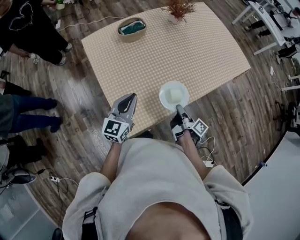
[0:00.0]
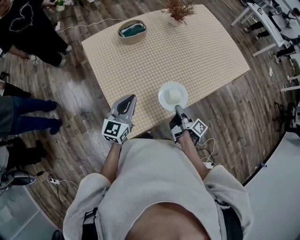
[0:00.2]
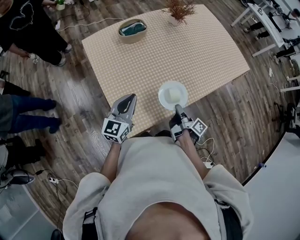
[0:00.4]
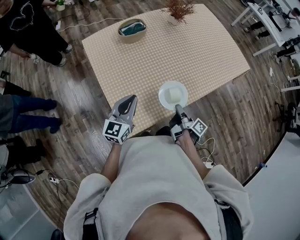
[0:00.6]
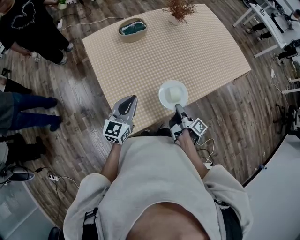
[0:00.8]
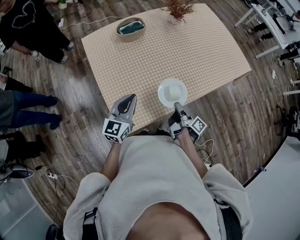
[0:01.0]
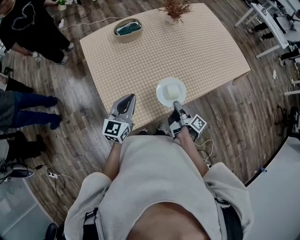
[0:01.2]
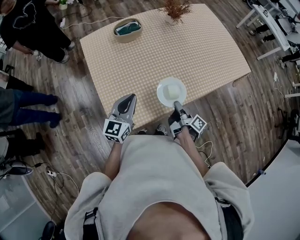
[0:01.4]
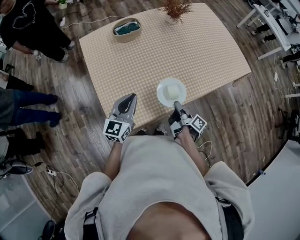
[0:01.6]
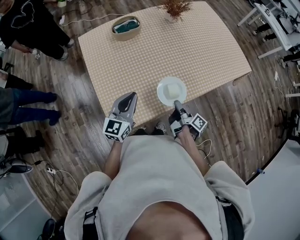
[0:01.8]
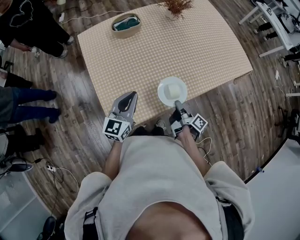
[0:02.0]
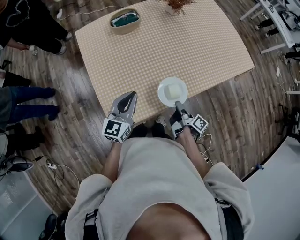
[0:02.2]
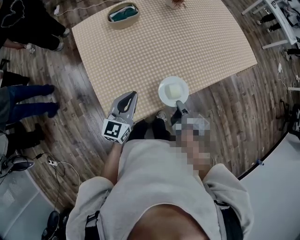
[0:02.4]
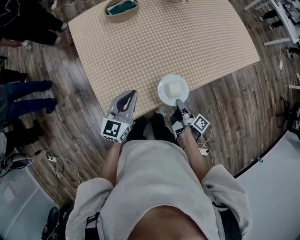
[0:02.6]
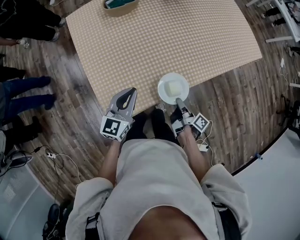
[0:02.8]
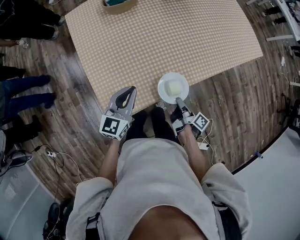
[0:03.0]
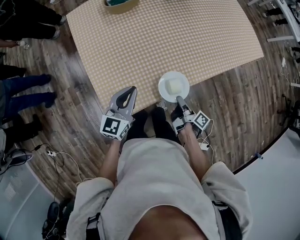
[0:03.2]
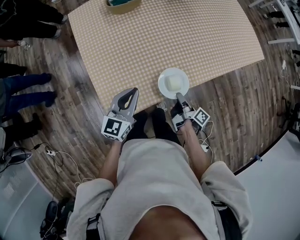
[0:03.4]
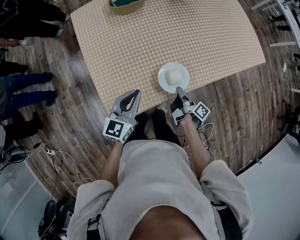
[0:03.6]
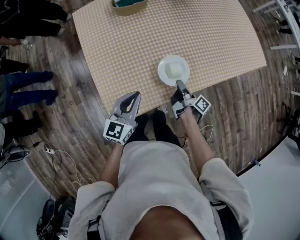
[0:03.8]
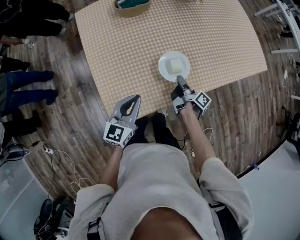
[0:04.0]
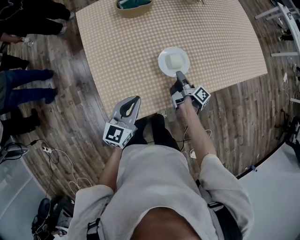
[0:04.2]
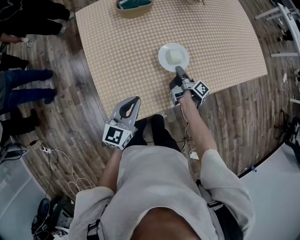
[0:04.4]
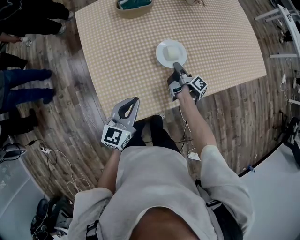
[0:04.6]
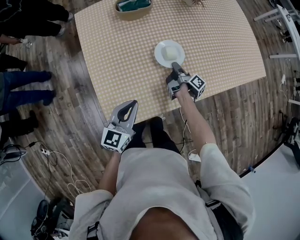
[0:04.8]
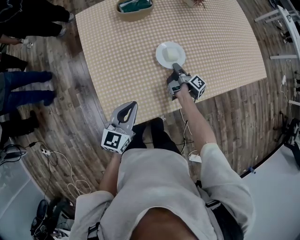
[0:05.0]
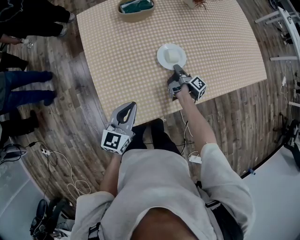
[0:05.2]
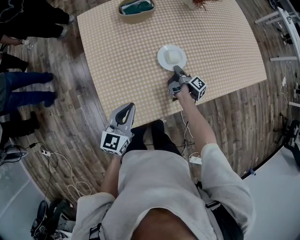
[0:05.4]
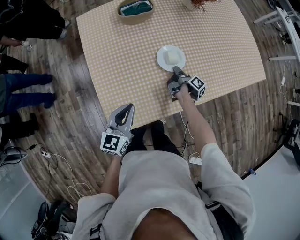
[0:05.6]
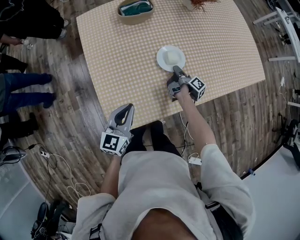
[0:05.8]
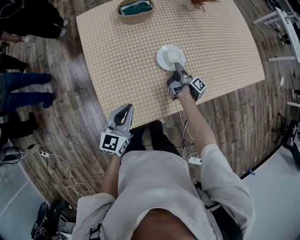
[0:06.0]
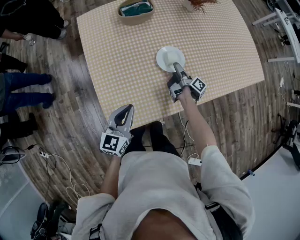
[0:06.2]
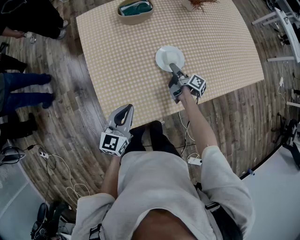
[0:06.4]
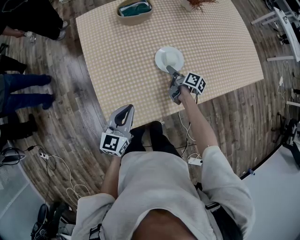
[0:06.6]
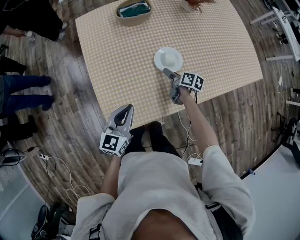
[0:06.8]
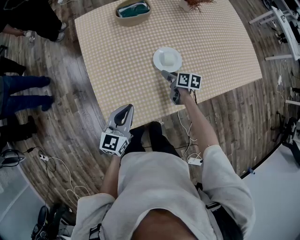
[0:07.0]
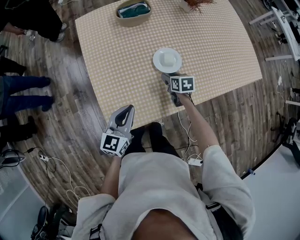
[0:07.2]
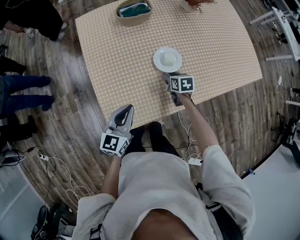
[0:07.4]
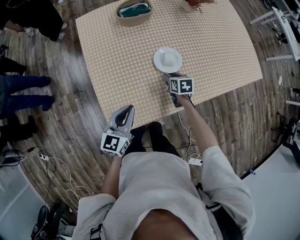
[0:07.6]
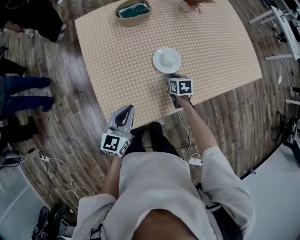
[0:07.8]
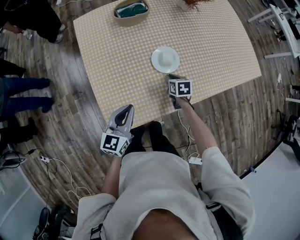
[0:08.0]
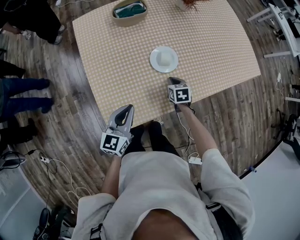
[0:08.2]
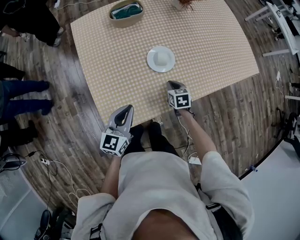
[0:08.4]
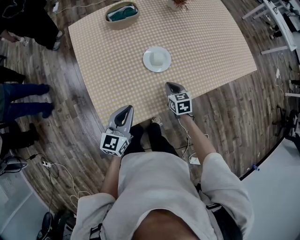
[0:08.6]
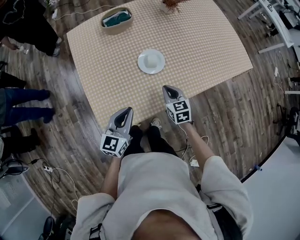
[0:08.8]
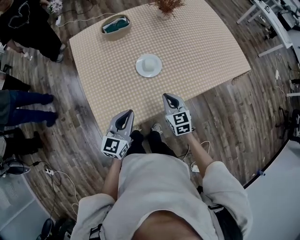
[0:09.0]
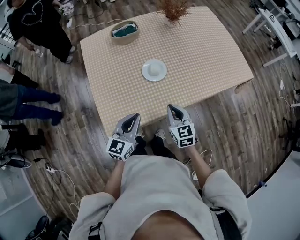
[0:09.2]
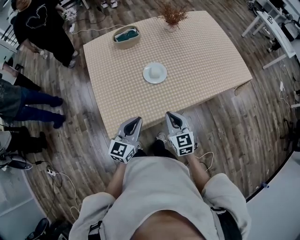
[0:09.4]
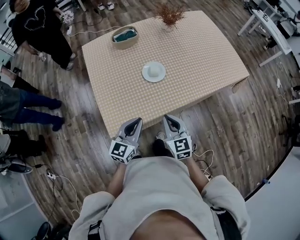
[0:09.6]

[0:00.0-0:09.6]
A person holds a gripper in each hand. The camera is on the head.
0:00.0 to 0:01.6: The left gripper changes place by roughly 5 cm.
0:01.6 to 0:03.2: The left gripper moves downward, about 5 cm.
0:08.0 to 0:09.6: The left gripper shifts by about 15 cm.

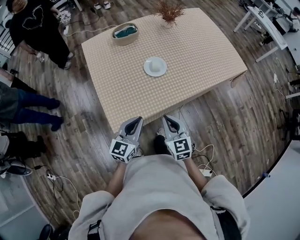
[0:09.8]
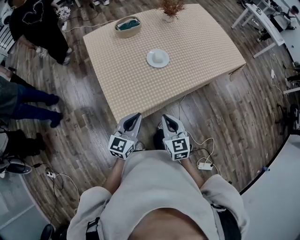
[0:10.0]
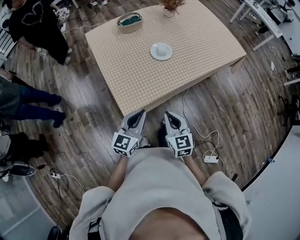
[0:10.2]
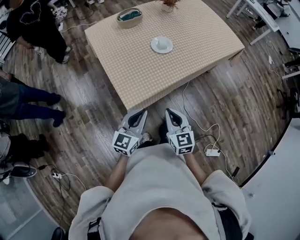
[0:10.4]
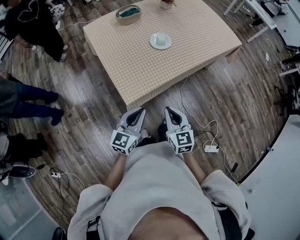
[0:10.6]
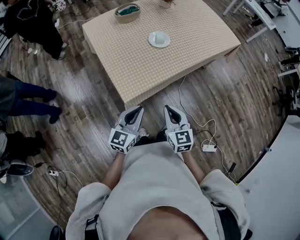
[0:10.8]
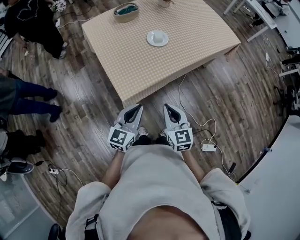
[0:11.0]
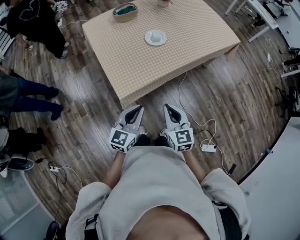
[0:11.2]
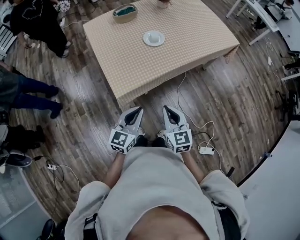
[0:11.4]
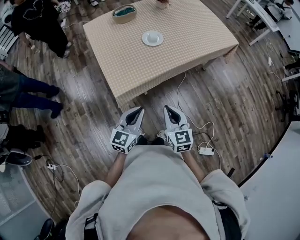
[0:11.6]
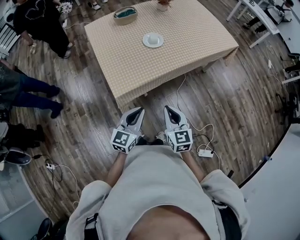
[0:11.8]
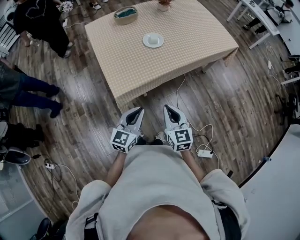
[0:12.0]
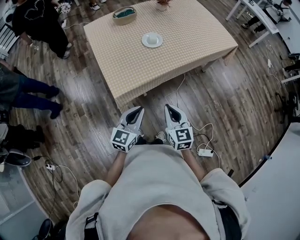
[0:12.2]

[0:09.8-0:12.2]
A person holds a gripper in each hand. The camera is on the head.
0:09.8 to 0:11.0: The left gripper changes place by about 15 cm.
0:11.0 to 0:12.2: The left gripper moves about 10 cm.

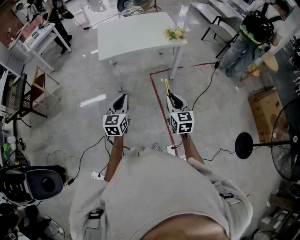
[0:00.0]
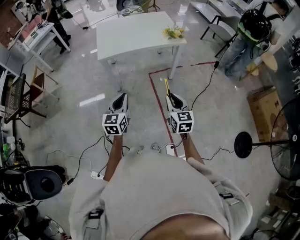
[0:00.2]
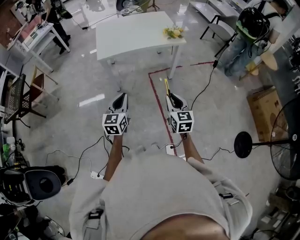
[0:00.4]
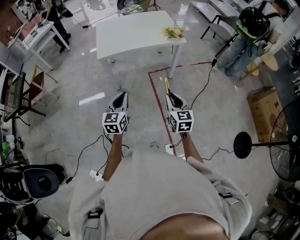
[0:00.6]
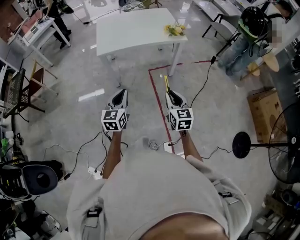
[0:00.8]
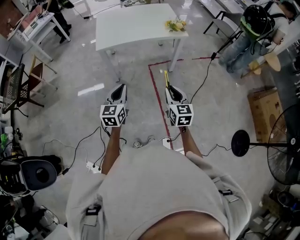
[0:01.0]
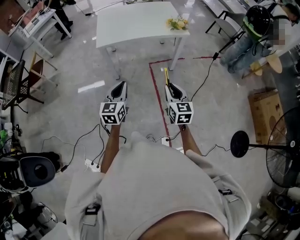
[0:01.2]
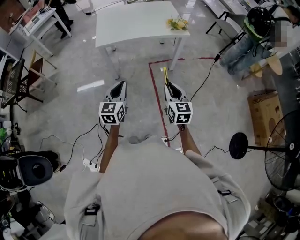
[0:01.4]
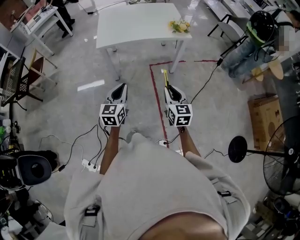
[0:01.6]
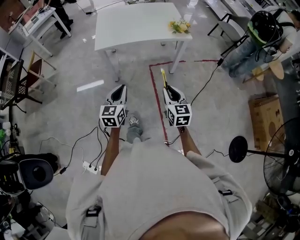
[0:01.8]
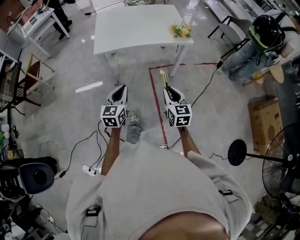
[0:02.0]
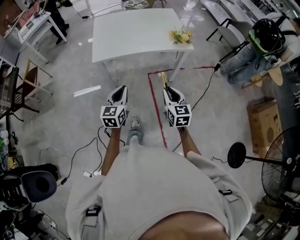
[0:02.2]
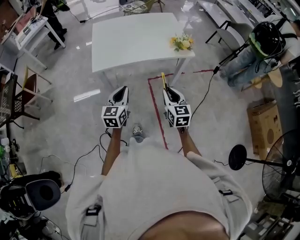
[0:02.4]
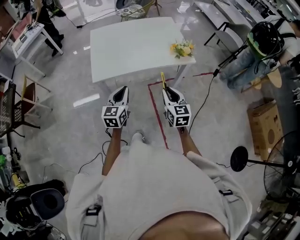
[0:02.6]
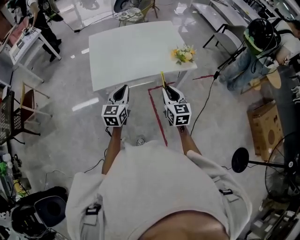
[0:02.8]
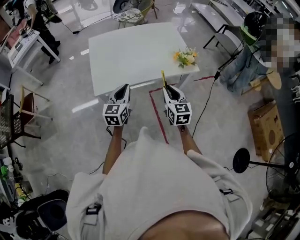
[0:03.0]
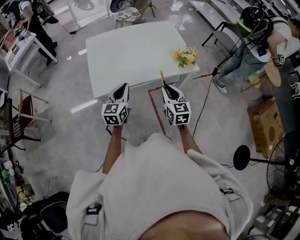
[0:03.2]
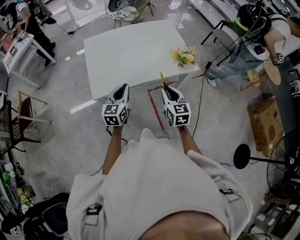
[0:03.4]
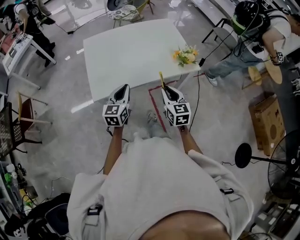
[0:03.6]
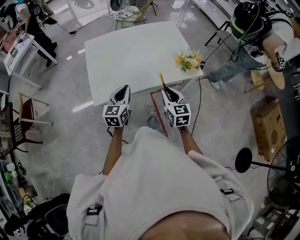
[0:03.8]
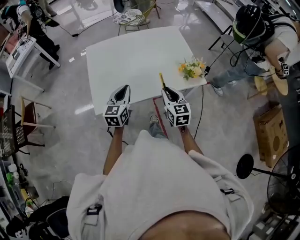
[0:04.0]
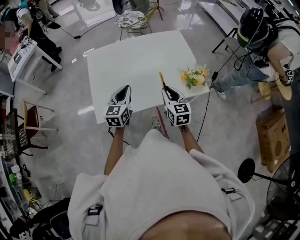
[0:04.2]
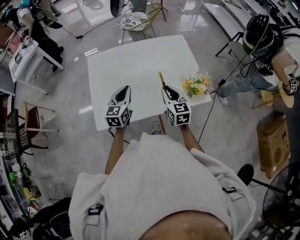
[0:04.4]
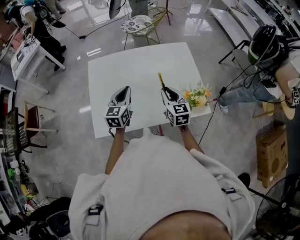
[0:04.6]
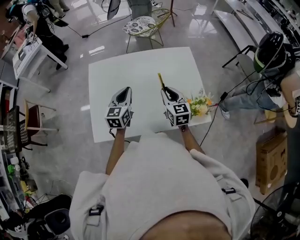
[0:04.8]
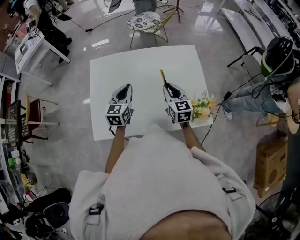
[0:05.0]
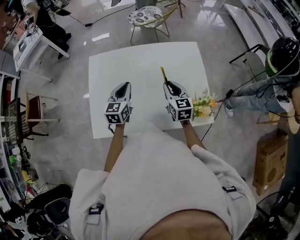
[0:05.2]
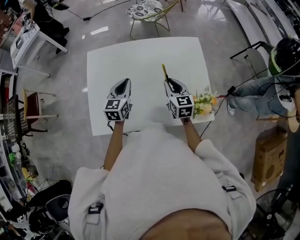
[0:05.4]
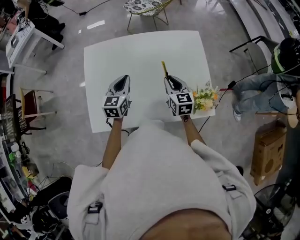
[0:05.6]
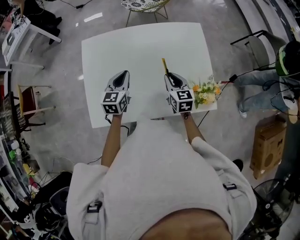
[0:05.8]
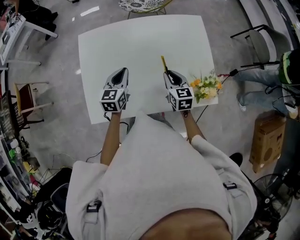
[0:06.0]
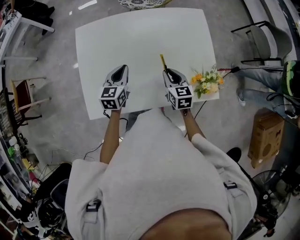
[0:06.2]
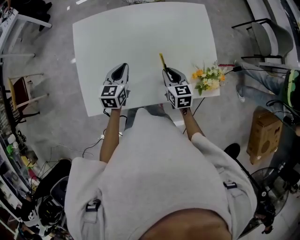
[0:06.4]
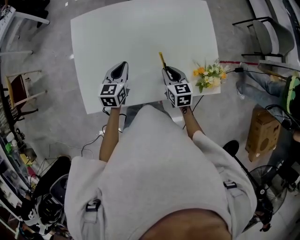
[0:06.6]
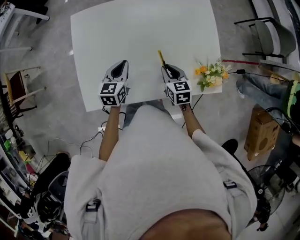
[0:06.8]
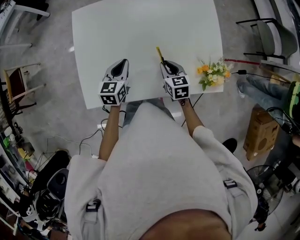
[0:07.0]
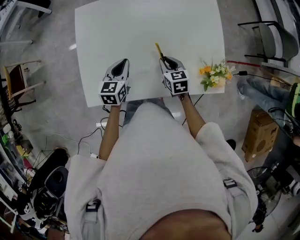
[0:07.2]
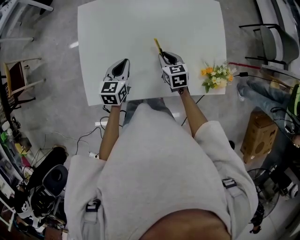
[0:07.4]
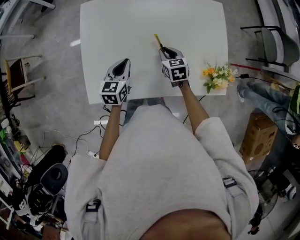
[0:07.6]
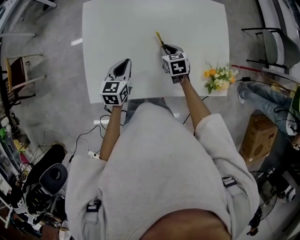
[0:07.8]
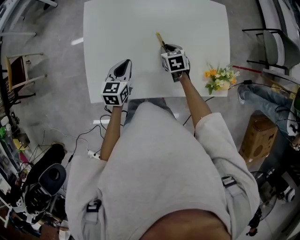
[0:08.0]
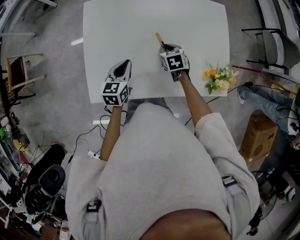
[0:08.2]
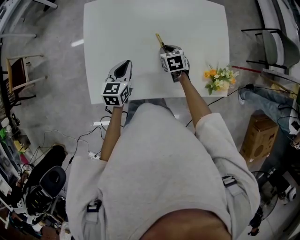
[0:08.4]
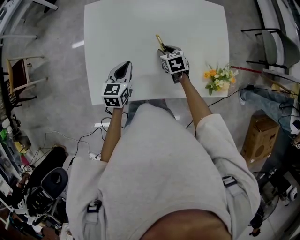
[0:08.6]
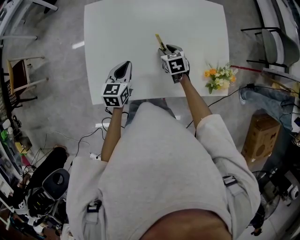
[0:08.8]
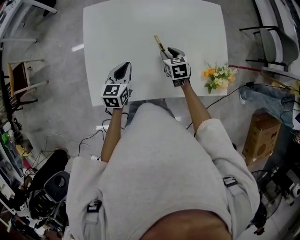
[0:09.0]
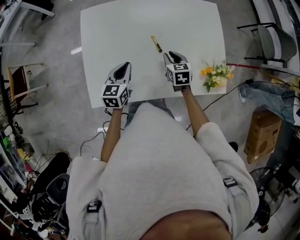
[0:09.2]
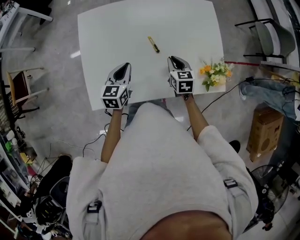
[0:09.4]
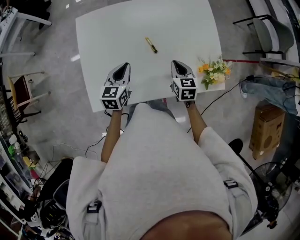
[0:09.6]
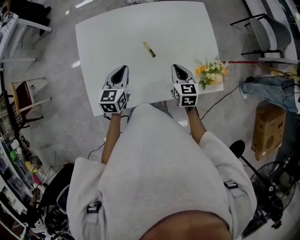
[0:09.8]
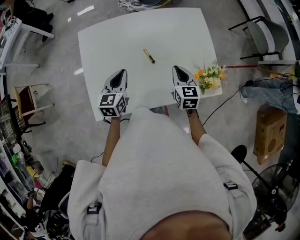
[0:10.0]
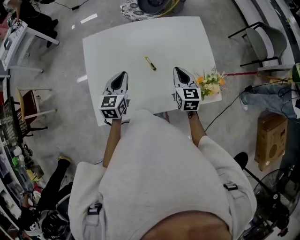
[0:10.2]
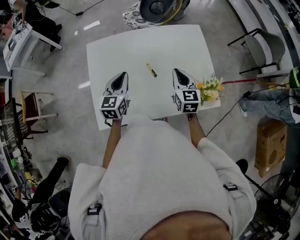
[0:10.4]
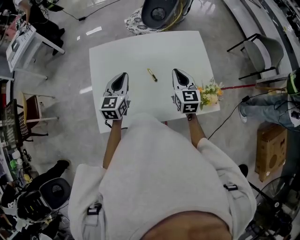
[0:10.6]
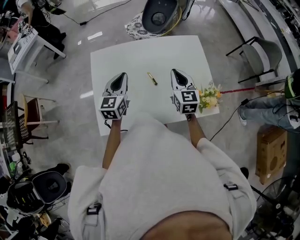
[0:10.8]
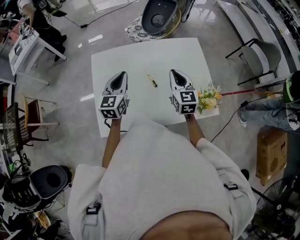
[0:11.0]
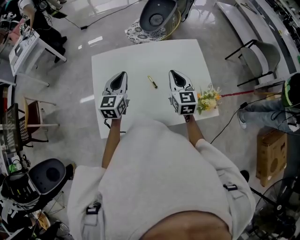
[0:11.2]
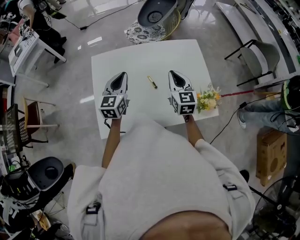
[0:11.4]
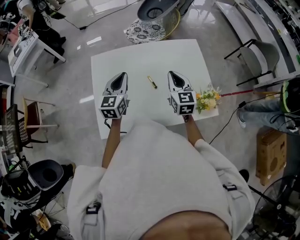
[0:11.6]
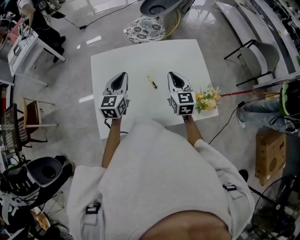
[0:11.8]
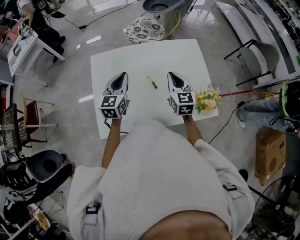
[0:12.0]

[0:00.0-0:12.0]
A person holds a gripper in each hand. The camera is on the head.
0:00.0 to 0:01.6: There are only small adjustments of the grippers.
0:01.6 to 0:03.0: Both grippers travel together forward, roughly 30 cm.
0:03.0 to 0:04.4: The grippers both shift forward by about 20 cm.
0:04.4 to 0:06.0: The right gripper travels downward and forward by roughly 10 cm. Meanwhile the left gripper heads forward and downward, covering roughly 10 cm.
0:06.0 to 0:07.6: The left gripper is displaced backward and downward by approximately 10 cm, while the right gripper is displaced downward and to the left by about 10 cm.
0:07.6 to 0:09.0: There are only small adjustments of the grippers.
0:09.0 to 0:10.4: The left gripper goes about 15 cm upward and forward. Meanwhile the right gripper is displaced upward by some 15 cm, turns by about 30 degrees, and closes its fingers.
0:10.4 to 0:12.0: The right gripper changes place by roughly 5 cm, while the left gripper moves approximately 5 cm.
